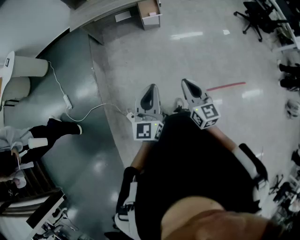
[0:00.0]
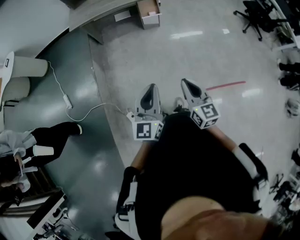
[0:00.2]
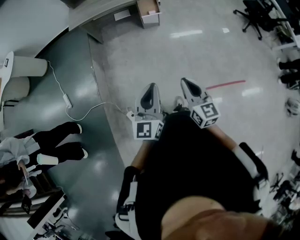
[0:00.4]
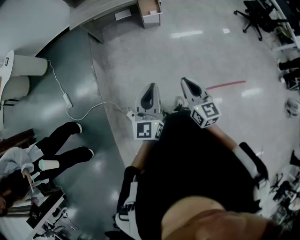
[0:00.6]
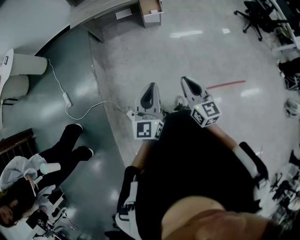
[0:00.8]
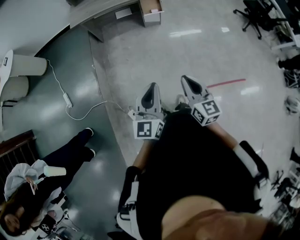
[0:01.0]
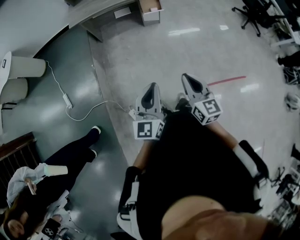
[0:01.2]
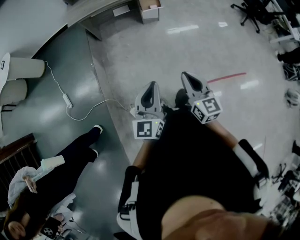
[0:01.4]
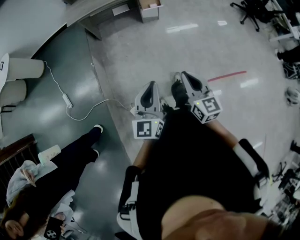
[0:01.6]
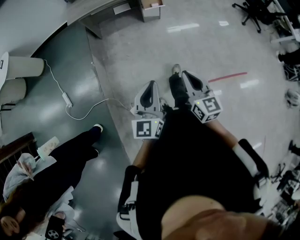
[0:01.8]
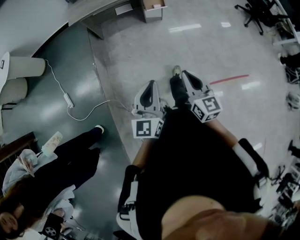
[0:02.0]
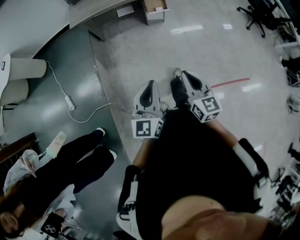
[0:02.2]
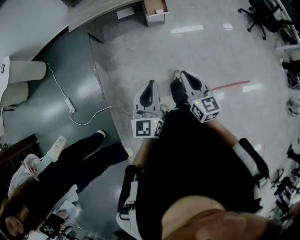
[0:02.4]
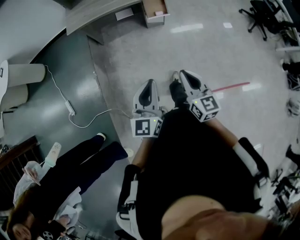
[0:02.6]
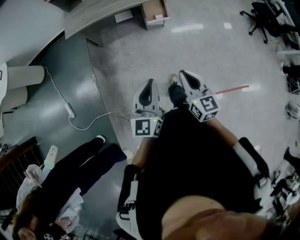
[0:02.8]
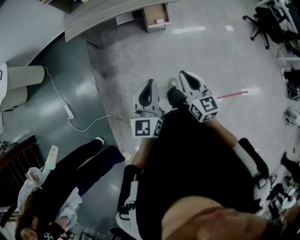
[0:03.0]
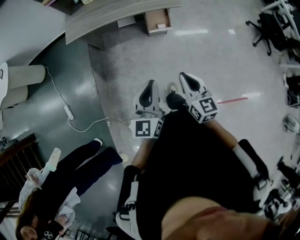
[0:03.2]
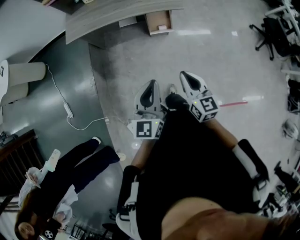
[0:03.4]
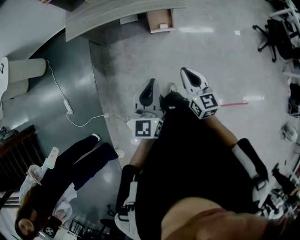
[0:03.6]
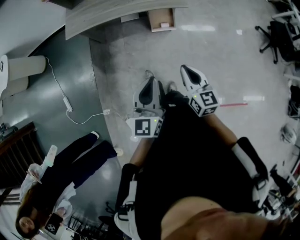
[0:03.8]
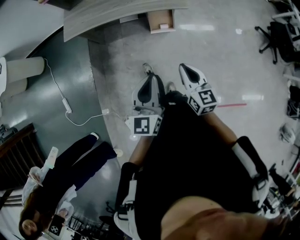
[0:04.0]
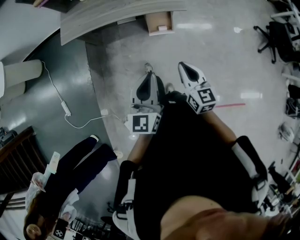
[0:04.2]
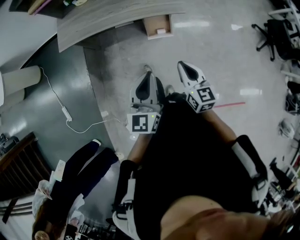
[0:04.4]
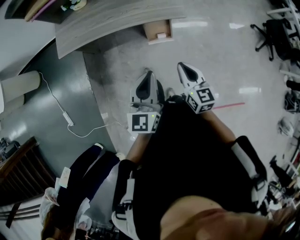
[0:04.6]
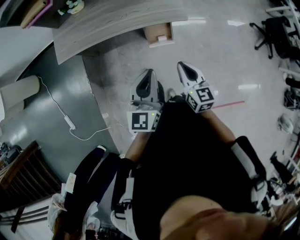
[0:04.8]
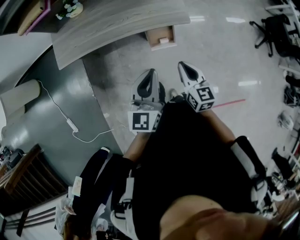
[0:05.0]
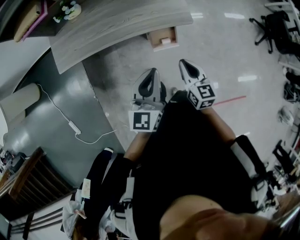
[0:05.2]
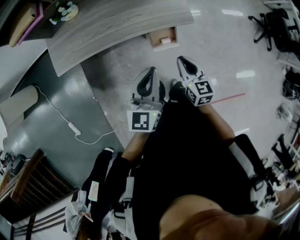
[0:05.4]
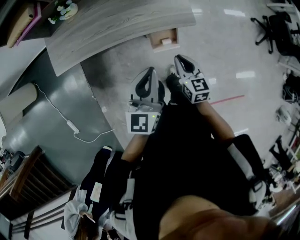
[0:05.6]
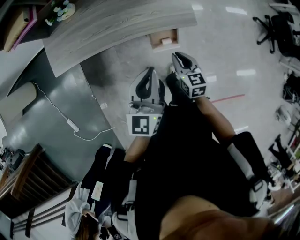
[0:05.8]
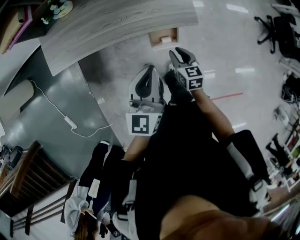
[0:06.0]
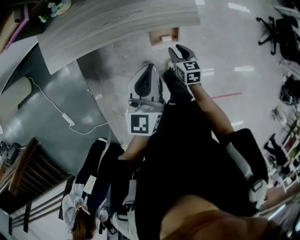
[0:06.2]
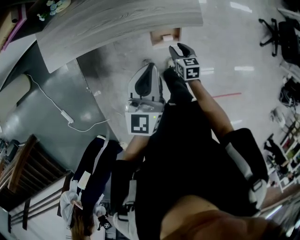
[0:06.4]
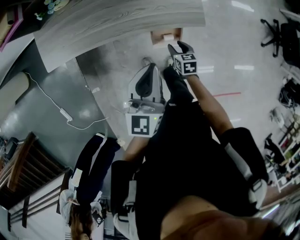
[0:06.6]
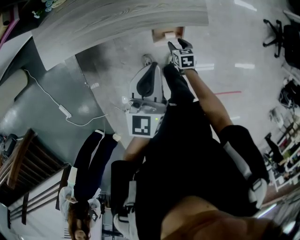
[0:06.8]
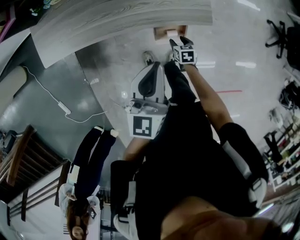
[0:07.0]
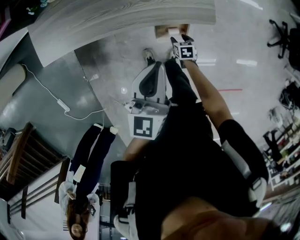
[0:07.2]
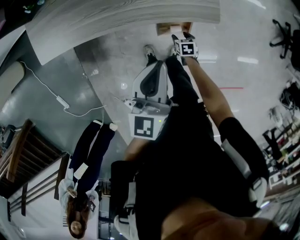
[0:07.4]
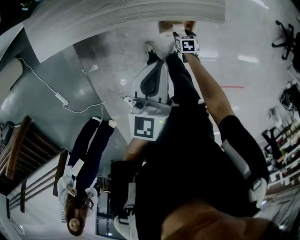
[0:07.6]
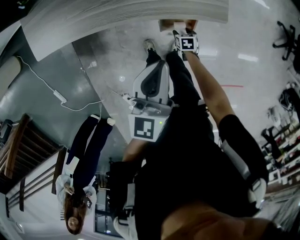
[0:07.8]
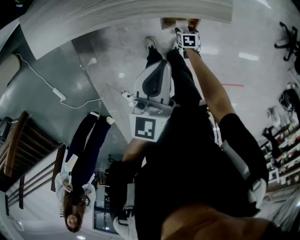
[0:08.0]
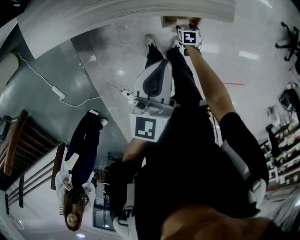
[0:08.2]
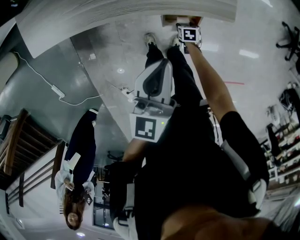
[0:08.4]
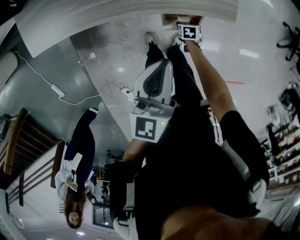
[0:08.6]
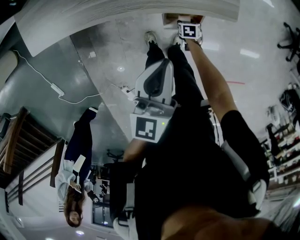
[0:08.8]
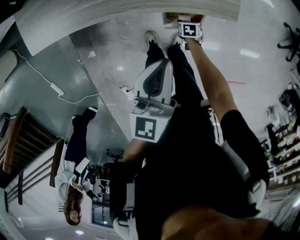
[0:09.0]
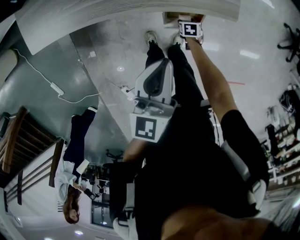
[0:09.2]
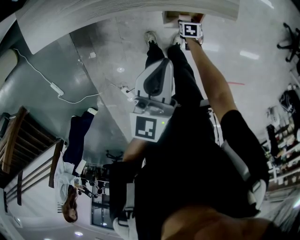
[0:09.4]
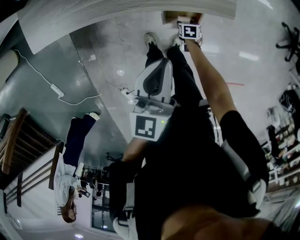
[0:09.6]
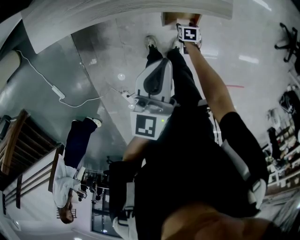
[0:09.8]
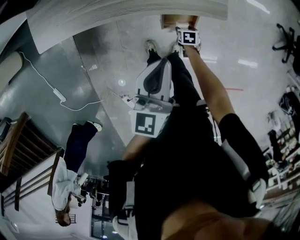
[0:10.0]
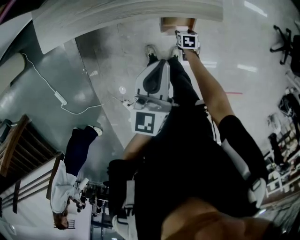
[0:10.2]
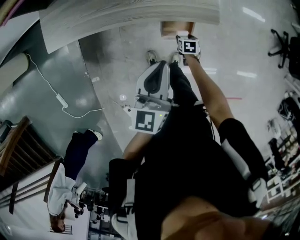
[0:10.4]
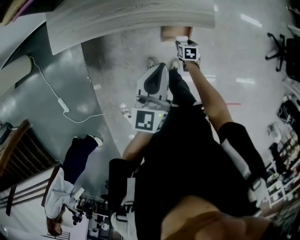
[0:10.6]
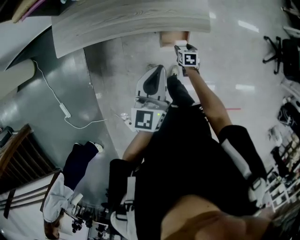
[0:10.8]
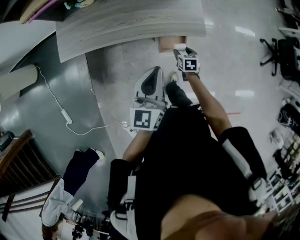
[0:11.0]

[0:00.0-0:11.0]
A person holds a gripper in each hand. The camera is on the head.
0.0 to 1.6 s: Both grippers move to the left, approximately 10 cm.
1.6 to 3.2 s: Both grippers move forward, roughly 35 cm.
3.2 to 4.8 s: Both grippers move forward, about 30 cm.
4.8 to 6.2 s: The left gripper travels forward by roughly 20 cm; the right gripper heads downward and forward, covering approximately 25 cm, changes its angle by approximately 20 degrees, and opens up.
6.2 to 7.8 s: The left gripper moves downward, roughly 10 cm, while the right gripper shifts about 30 cm downward, turns by about 30 degrees, and opens its fingers.
7.8 to 9.4 s: The grippers stay close to where they were, moving slightly.
9.4 to 11.0 s: The right gripper travels upward by approximately 25 cm, and rotates about 30 degrees, while the left gripper moves upward, approximately 15 cm.

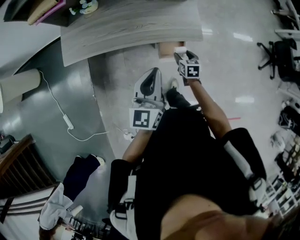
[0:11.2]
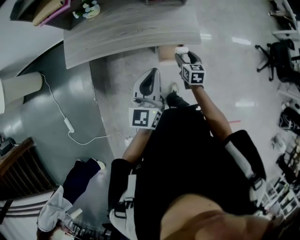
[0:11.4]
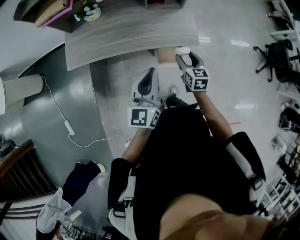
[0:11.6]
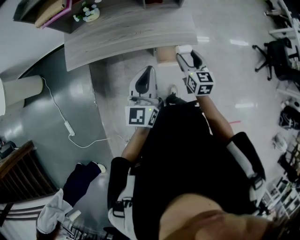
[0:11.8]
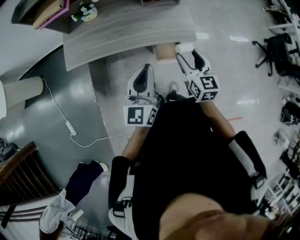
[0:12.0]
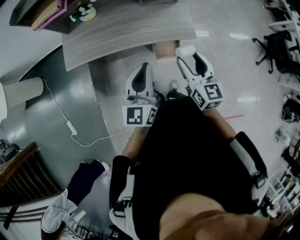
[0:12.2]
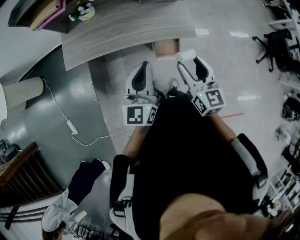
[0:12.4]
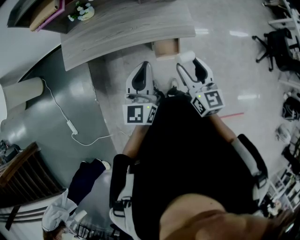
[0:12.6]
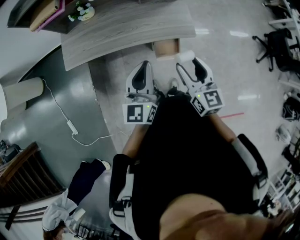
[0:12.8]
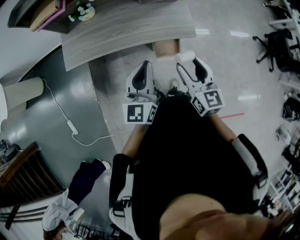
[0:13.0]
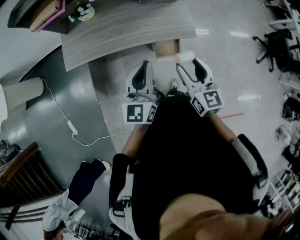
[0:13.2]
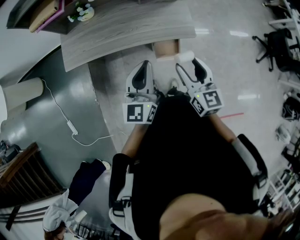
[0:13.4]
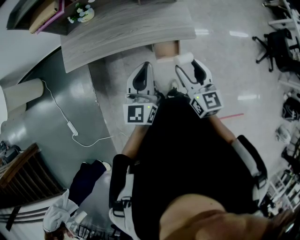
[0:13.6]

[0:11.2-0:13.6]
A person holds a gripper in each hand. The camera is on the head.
11.2 to 12.4 s: The right gripper goes approximately 30 cm upward, and angles its fingers upward, by roughly 40 degrees. Meanwhile the left gripper shifts by some 5 cm.
12.4 to 13.6 s: The grippers move only a little.

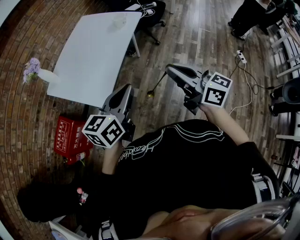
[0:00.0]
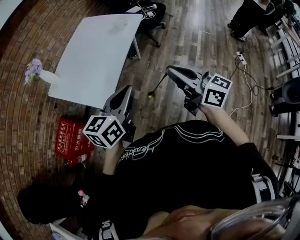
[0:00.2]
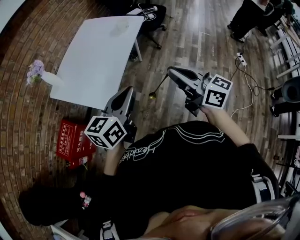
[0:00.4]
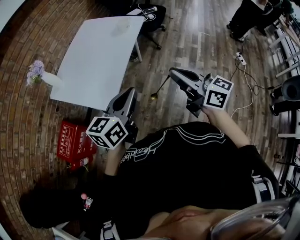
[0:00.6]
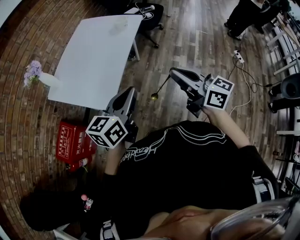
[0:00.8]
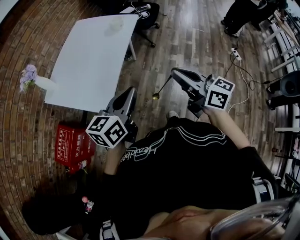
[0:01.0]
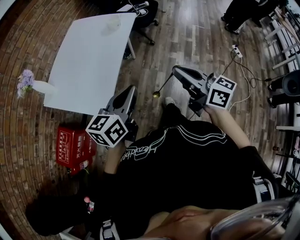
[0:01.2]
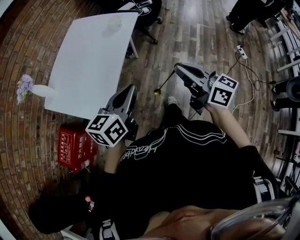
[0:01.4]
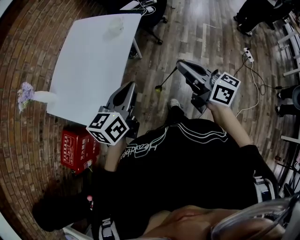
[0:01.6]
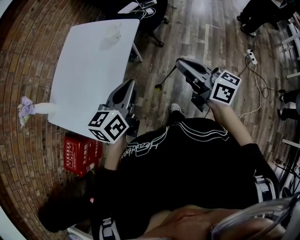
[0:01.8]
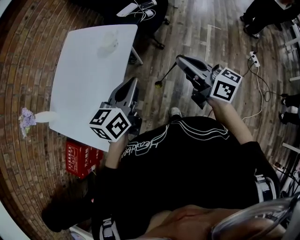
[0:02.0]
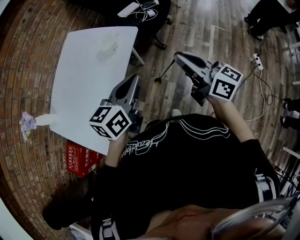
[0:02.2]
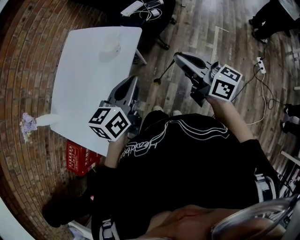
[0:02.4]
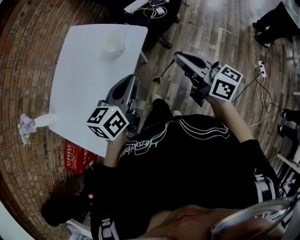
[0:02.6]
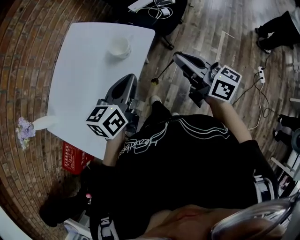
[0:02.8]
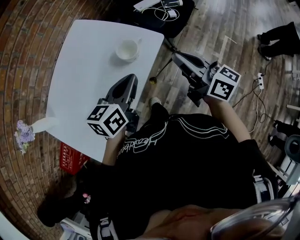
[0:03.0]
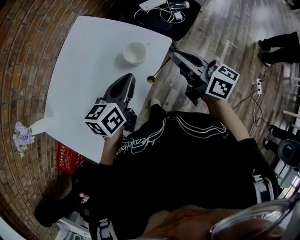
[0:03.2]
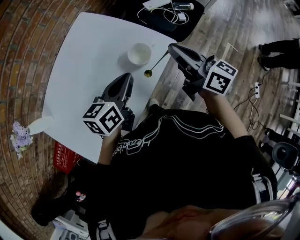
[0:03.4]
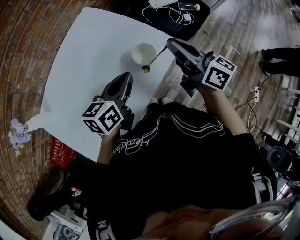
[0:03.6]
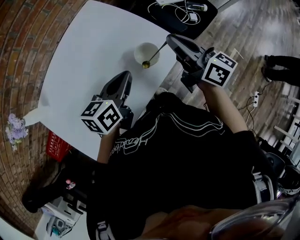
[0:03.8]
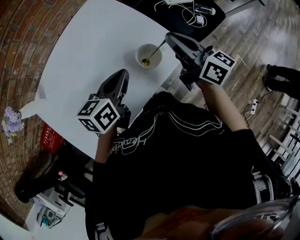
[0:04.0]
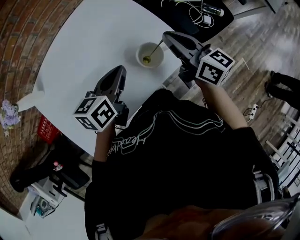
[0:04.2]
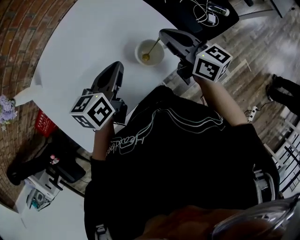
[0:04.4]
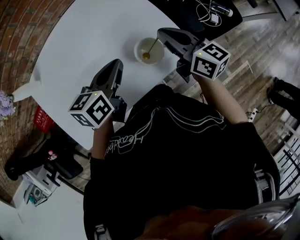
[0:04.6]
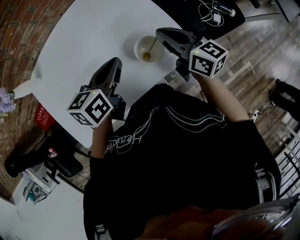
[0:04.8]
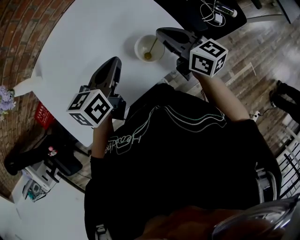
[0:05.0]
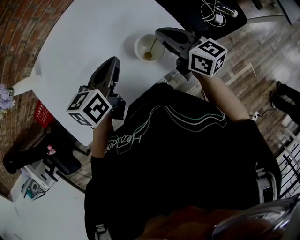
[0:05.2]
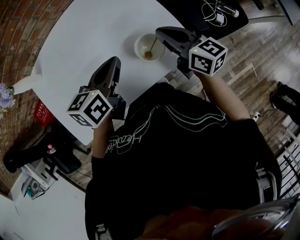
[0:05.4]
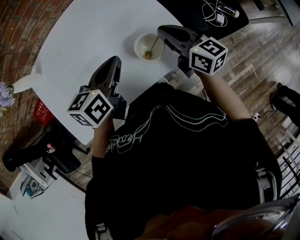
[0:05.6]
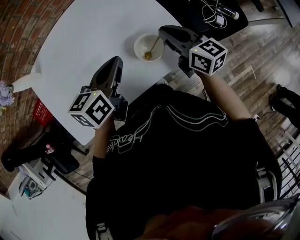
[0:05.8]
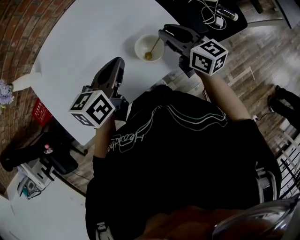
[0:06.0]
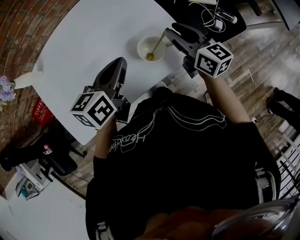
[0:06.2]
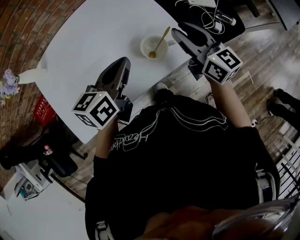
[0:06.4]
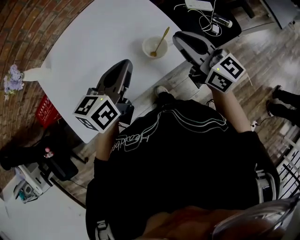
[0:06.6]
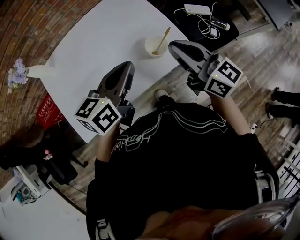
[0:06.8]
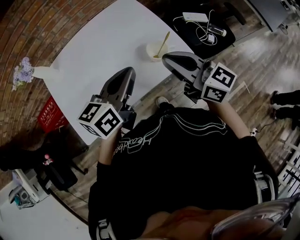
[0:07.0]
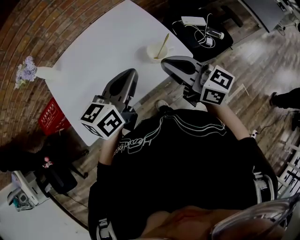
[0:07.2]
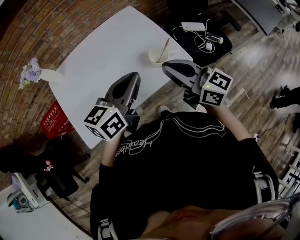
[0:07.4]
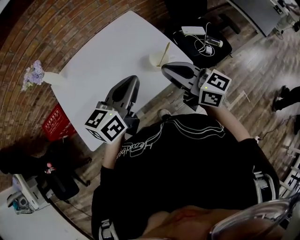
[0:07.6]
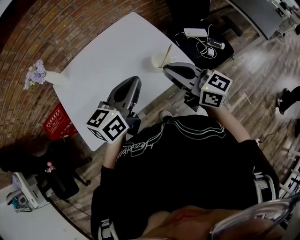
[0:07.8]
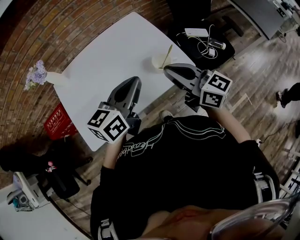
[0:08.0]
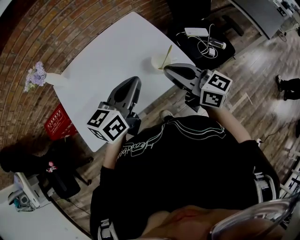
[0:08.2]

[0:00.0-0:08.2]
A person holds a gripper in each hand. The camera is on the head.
0.0 to 1.6 s: The left gripper heads forward, covering some 15 cm. Meanwhile the right gripper heads forward and to the right, covering about 15 cm.
1.6 to 3.2 s: The two grippers travel together, forward, about 40 cm.
3.2 to 5.0 s: The left gripper ends up approximately 10 cm from where it was, and turns by approximately 30 degrees, while the right gripper shifts by roughly 20 cm, and turns by roughly 30 degrees.
5.0 to 6.6 s: The grippers both shift upward and backward by about 10 cm.
6.6 to 8.2 s: The right gripper shifts approximately 15 cm backward, to the left and upward. Meanwhile the left gripper travels upward and backward by some 10 cm.

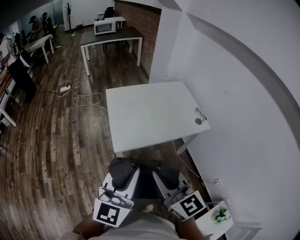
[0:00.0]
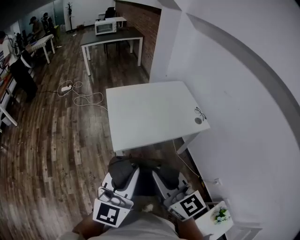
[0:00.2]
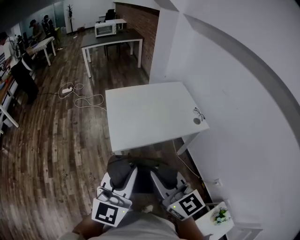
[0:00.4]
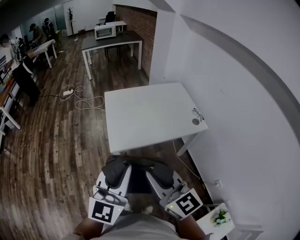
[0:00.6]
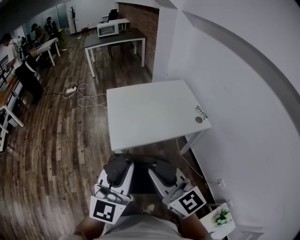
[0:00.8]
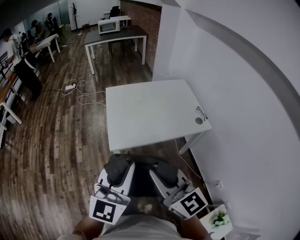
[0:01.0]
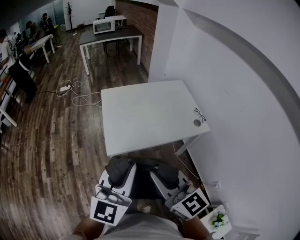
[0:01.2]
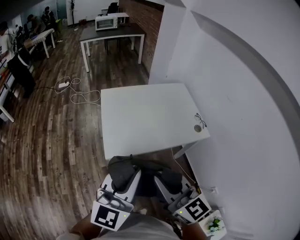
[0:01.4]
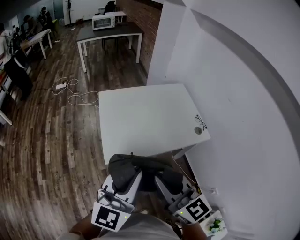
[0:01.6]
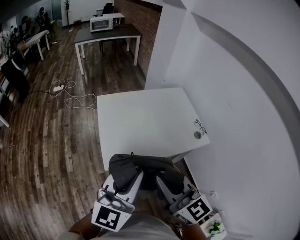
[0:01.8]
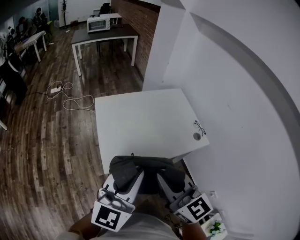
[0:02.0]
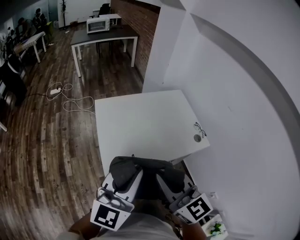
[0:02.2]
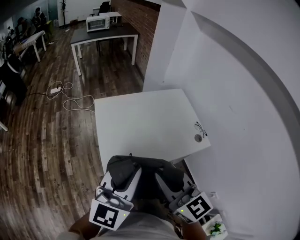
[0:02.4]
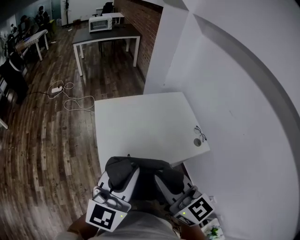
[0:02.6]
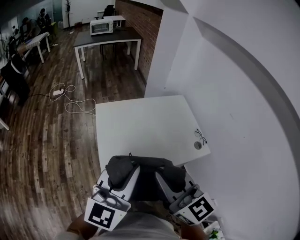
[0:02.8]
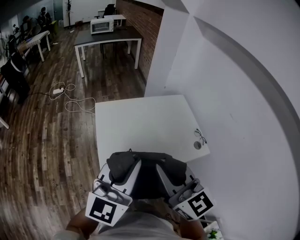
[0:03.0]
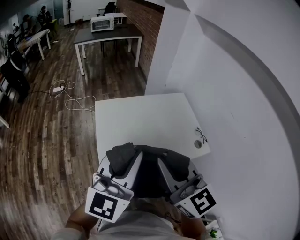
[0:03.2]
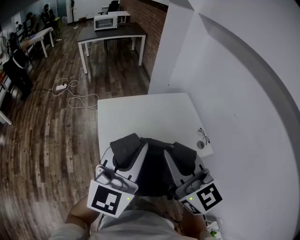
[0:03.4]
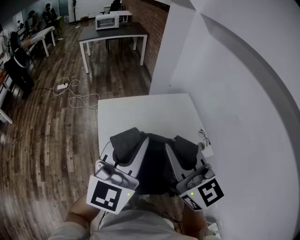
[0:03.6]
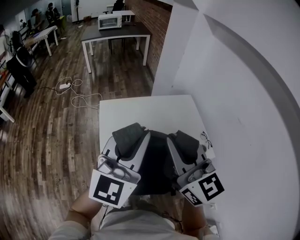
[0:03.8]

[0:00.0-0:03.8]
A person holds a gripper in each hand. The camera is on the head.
0.0 to 1.2 s: The grippers both shift to the right by approximately 5 cm.
1.2 to 2.6 s: Both grippers travel together forward, some 20 cm.
2.6 to 3.8 s: Both grippers move forward and upward, roughly 15 cm.
